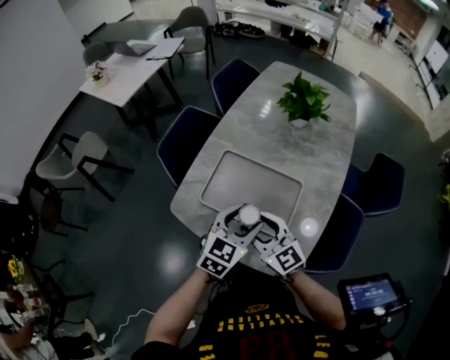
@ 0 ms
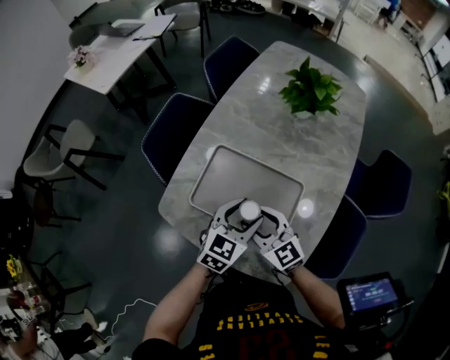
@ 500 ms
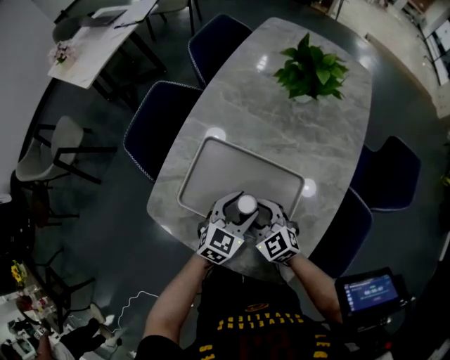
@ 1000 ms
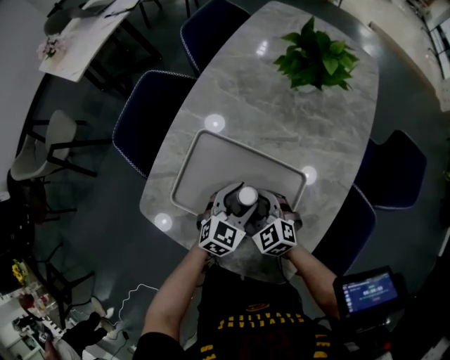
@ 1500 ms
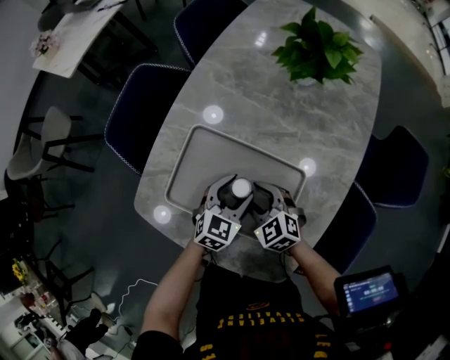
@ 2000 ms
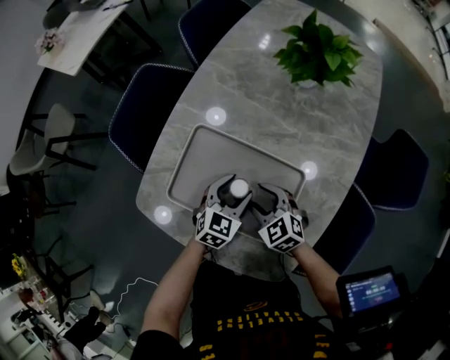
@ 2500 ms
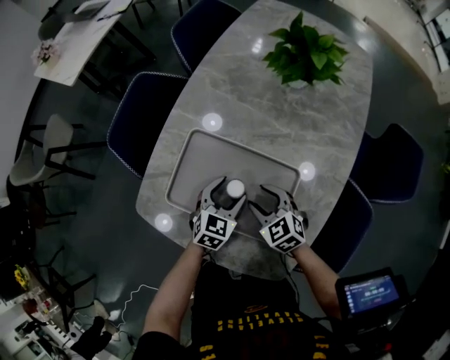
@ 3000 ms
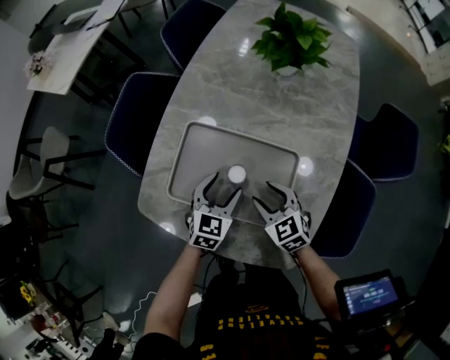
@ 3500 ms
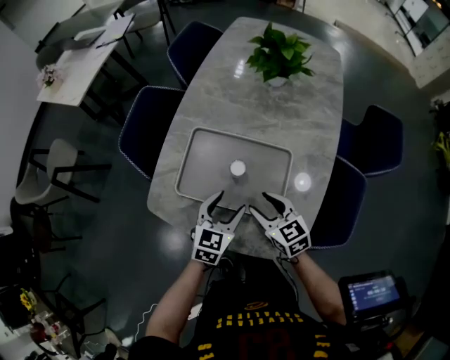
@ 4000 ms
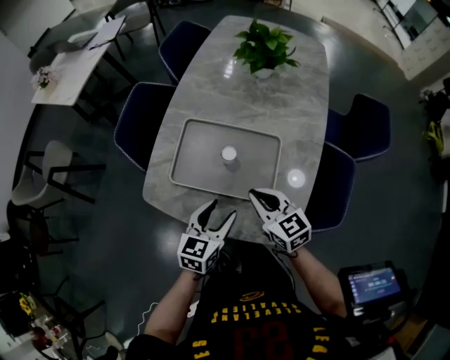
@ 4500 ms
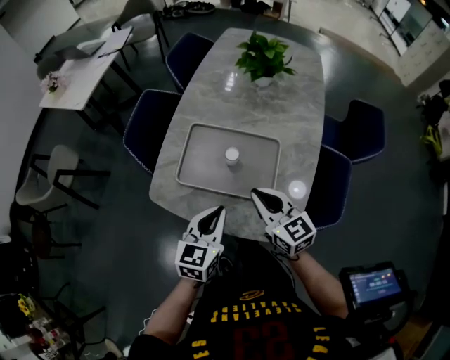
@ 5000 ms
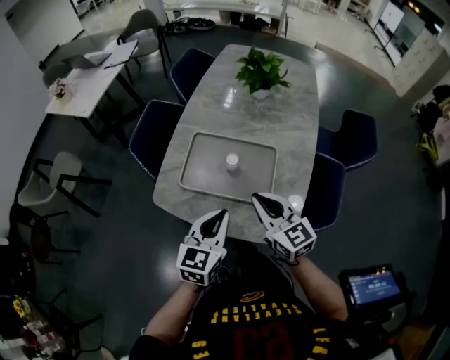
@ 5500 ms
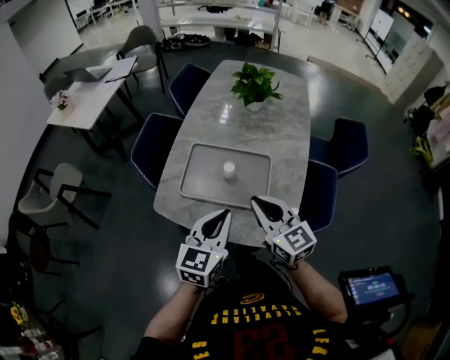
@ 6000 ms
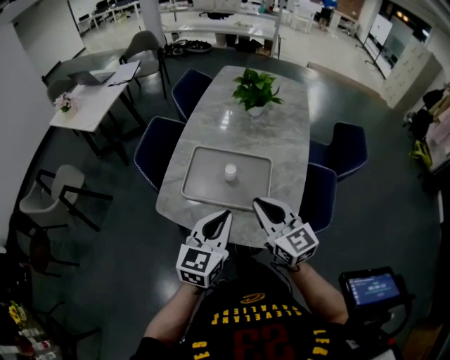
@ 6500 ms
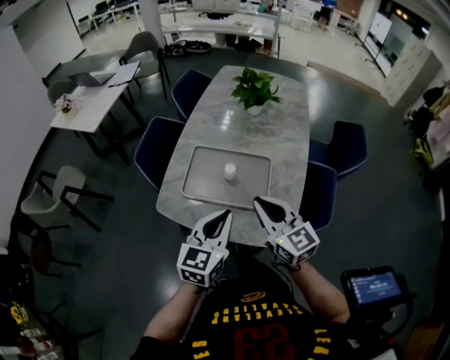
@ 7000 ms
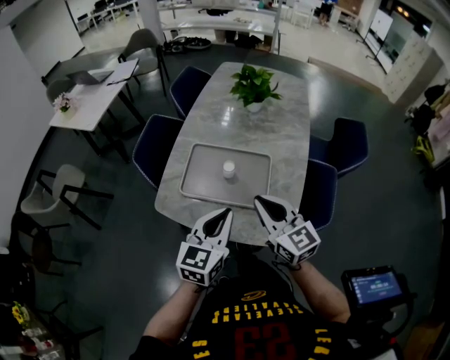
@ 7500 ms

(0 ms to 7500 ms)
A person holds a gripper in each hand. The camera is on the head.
0 ms - 2000 ms: The two grippers go some 25 cm downward and forward. The right gripper angles its fingers downward, by approximately 30 degrees.
2000 ms - 4000 ms: Both grippers travel together backward and upward, about 10 cm. The right gripper rotates about 30 degrees.
4000 ms - 5500 ms: Both grippers travel together upward and backward, roughly 20 cm. The left gripper closes up. Meanwhile the right gripper closes up.
5500 ms - 7500 ms: Both grippers move upward, about 5 cm.

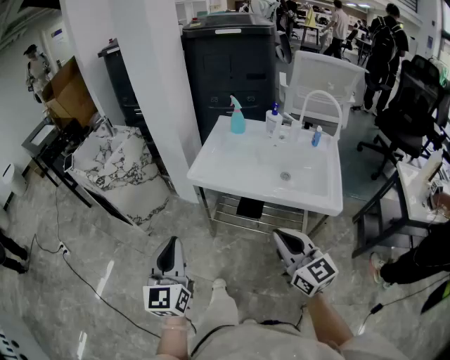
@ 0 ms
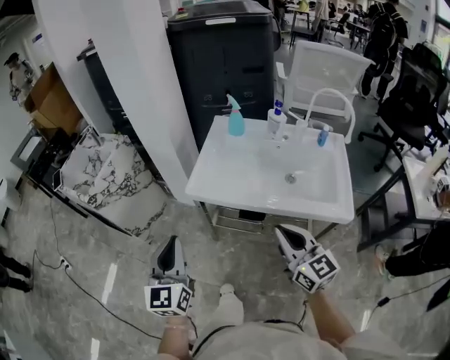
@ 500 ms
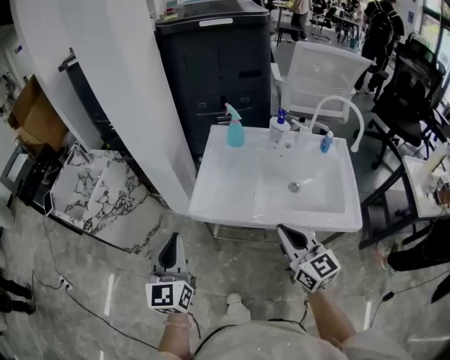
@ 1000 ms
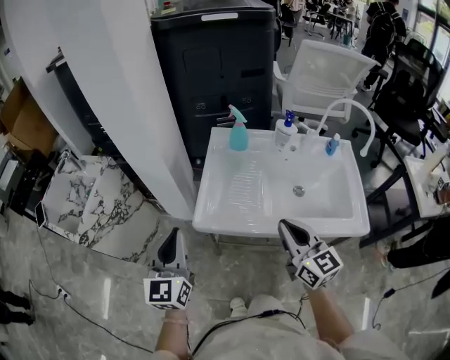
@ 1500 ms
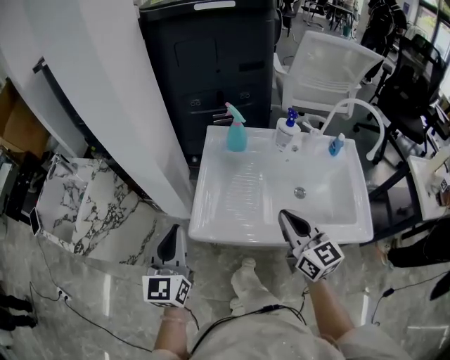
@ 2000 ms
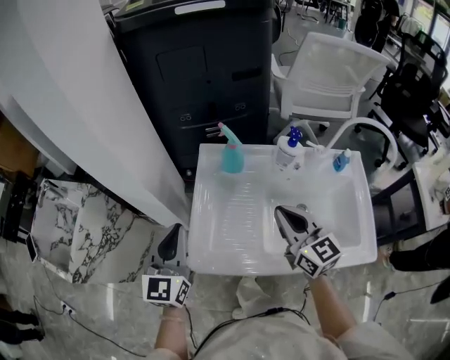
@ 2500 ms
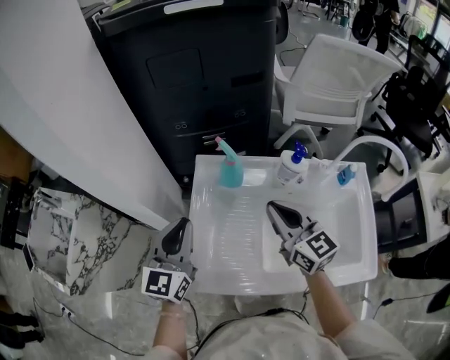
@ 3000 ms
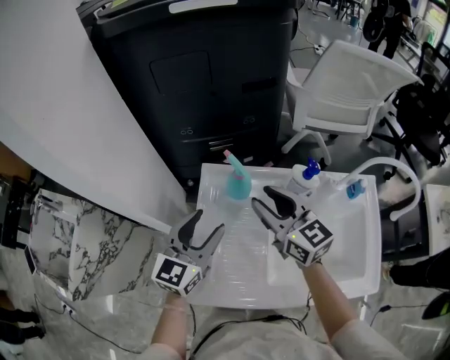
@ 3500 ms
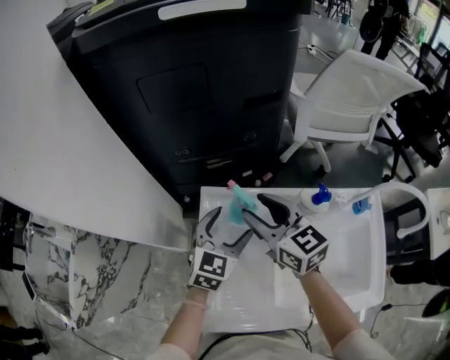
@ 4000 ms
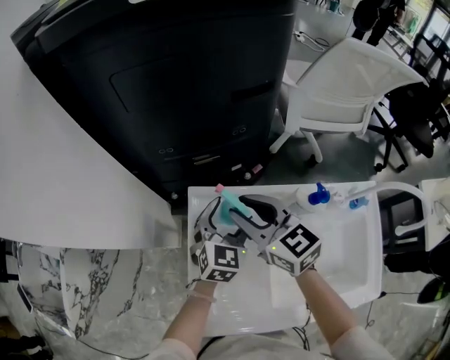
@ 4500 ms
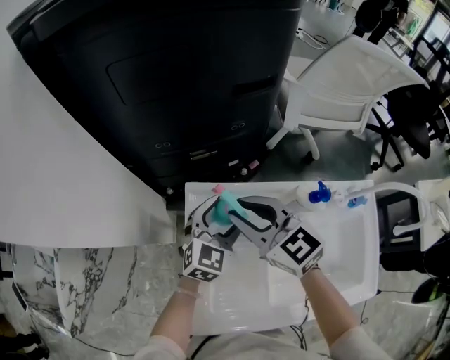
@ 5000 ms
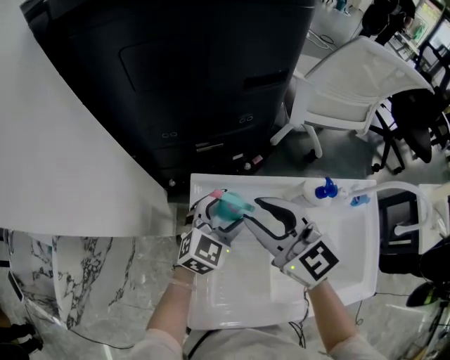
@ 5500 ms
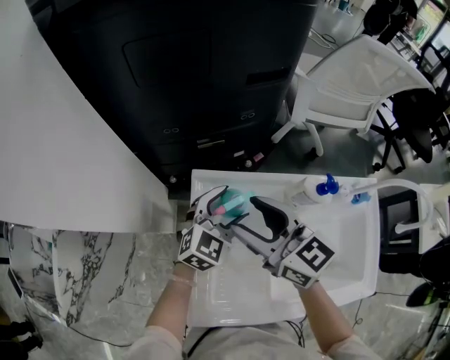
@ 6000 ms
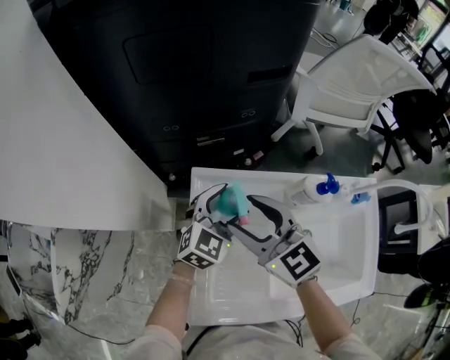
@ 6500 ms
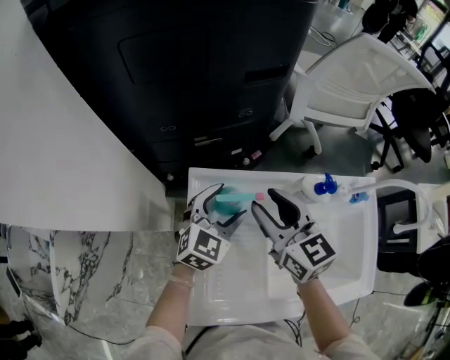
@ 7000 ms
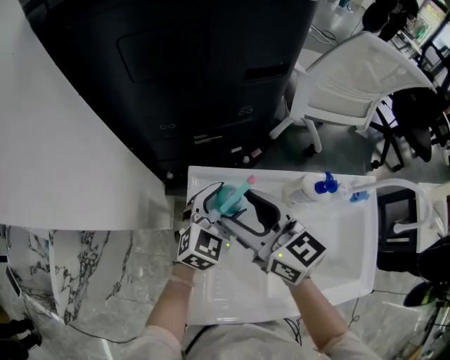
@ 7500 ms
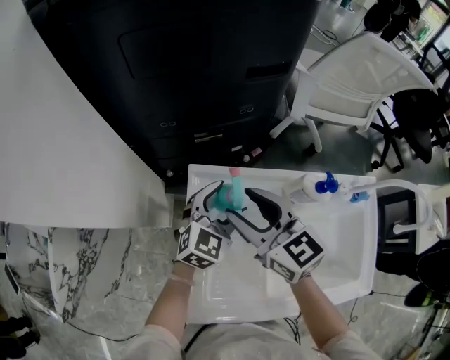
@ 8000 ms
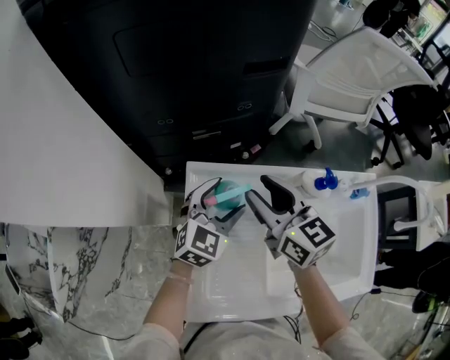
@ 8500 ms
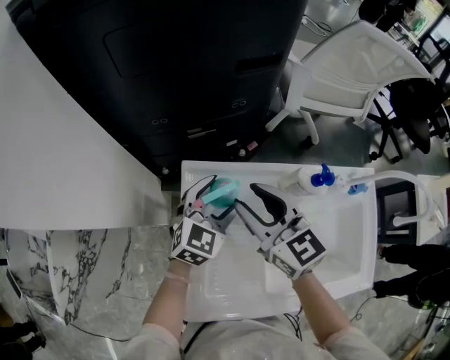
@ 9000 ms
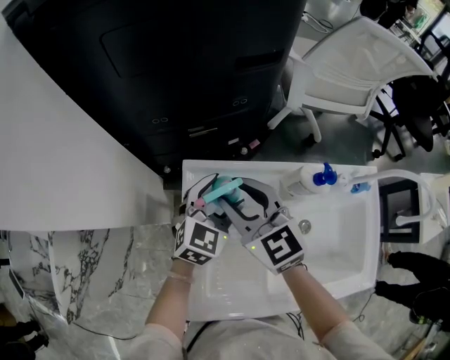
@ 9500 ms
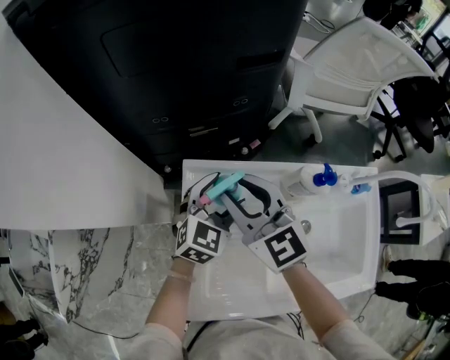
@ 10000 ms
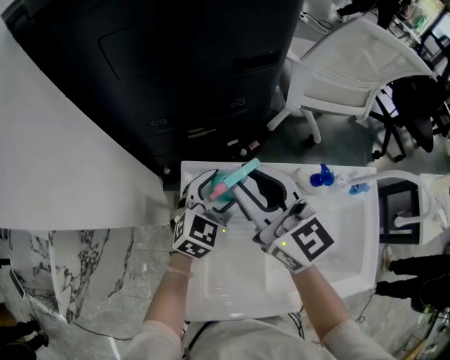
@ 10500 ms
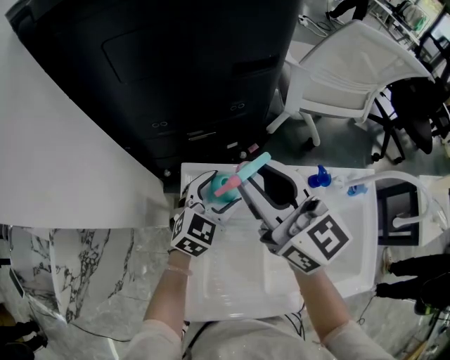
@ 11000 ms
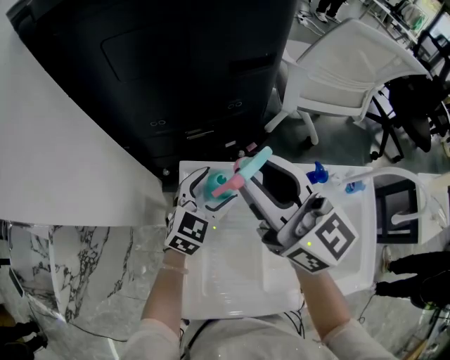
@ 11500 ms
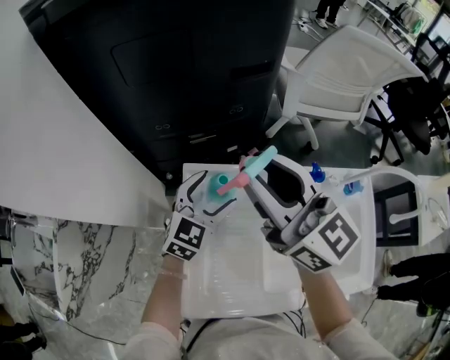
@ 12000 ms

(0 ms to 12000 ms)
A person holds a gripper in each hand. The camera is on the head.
0 ms - 2000 ms: Both grippers move forward, some 35 cm.
2000 ms - 4000 ms: The right gripper moves forward, about 35 cm, and opens. Meanwhile the left gripper goes about 40 cm forward and to the right, swivels roughly 30 degrees, and opens its fingers.
8000 ms - 10000 ms: The grippers move only a little.
10000 ms - 12000 ms: The right gripper heads upward, covering about 15 cm, and rotates about 20 degrees.

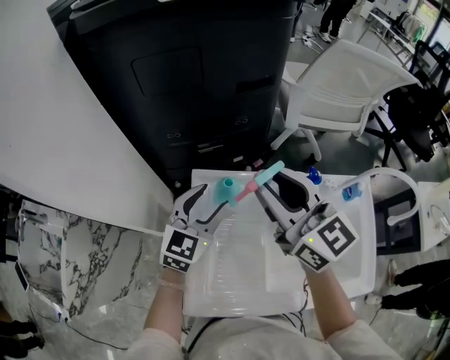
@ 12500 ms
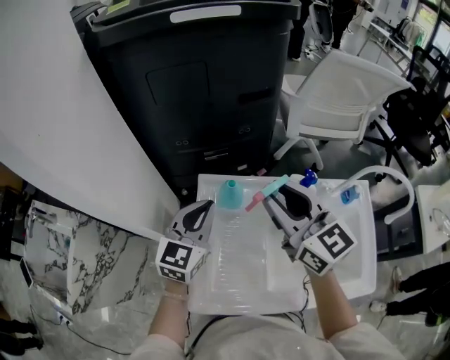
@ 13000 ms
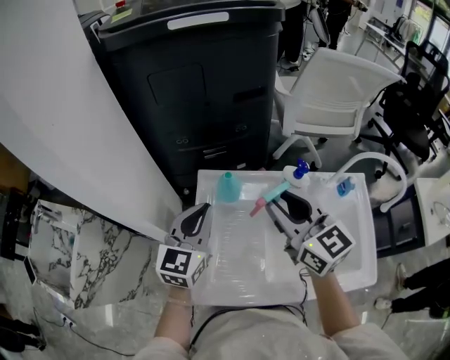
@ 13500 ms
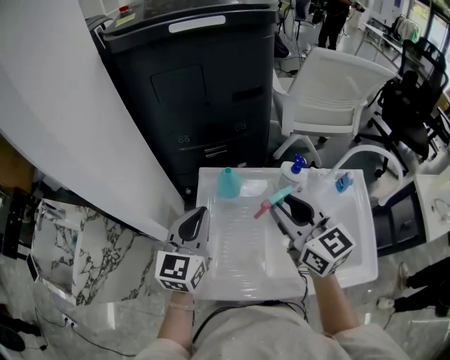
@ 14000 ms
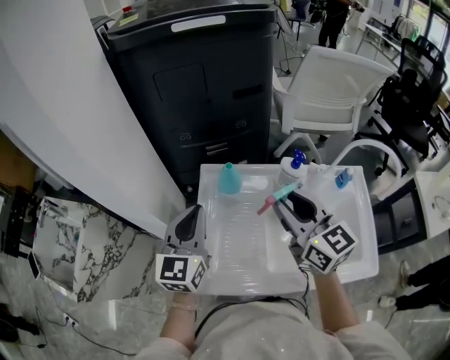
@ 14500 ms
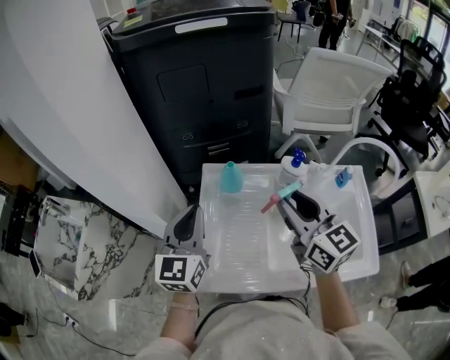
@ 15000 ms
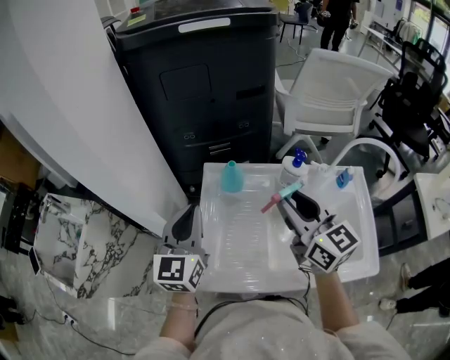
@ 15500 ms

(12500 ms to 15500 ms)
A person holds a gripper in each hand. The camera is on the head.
12500 ms - 14000 ms: The right gripper shifts some 10 cm backward. The left gripper travels backward and upward by about 15 cm, and closes.
14000 ms - 15500 ms: The grippers move only a little.

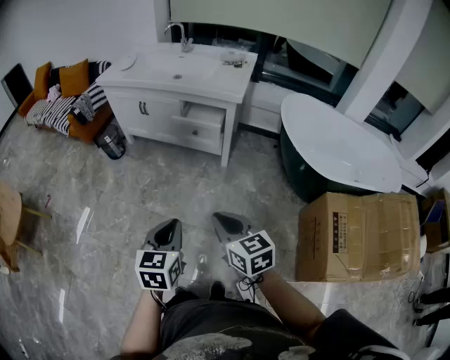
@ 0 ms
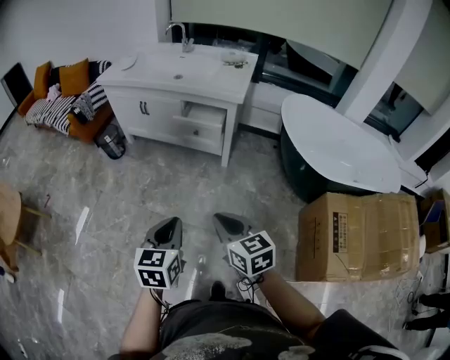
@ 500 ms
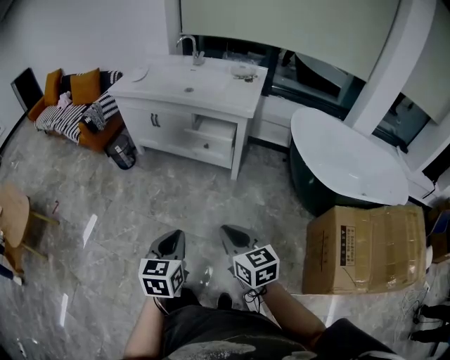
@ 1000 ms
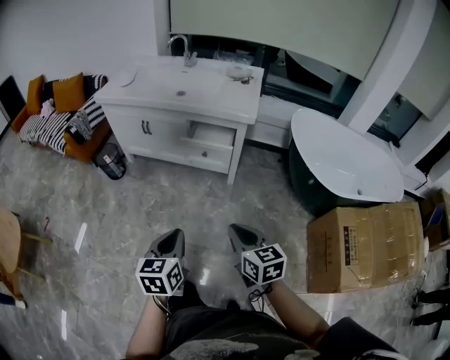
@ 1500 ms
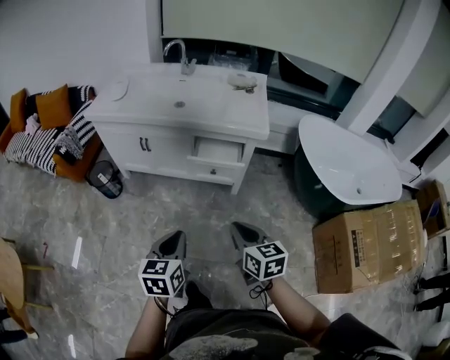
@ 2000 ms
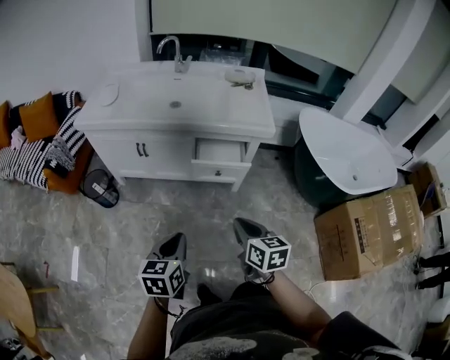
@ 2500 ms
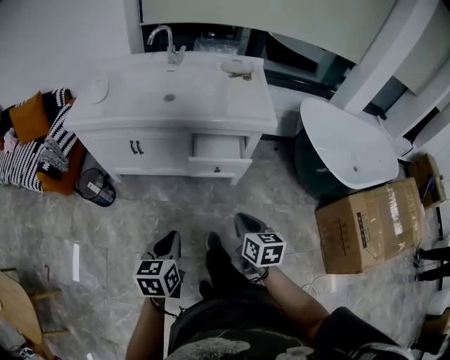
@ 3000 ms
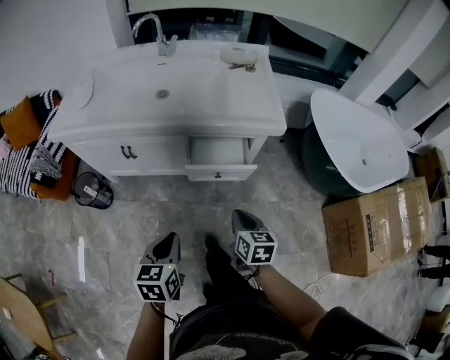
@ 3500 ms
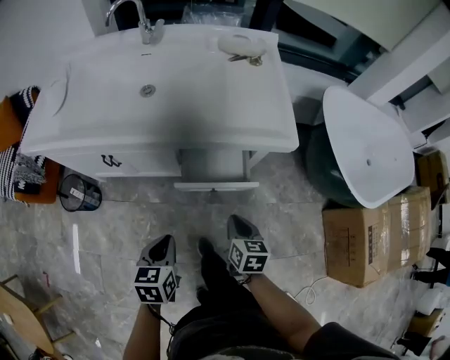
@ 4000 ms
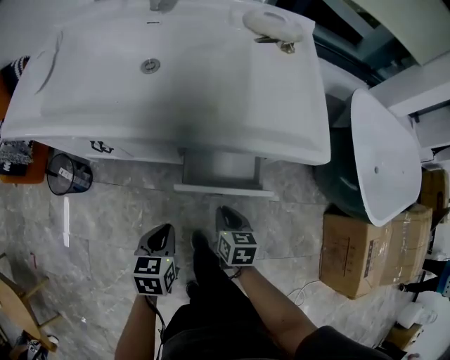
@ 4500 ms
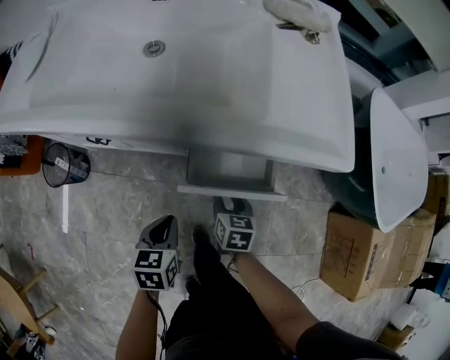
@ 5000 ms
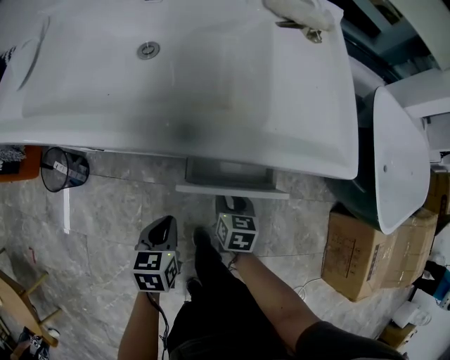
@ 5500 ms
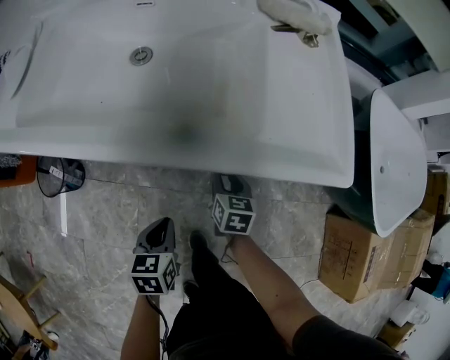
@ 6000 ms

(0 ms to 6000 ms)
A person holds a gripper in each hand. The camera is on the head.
0 ms - 2000 ms: The two grippers go approximately 25 cm forward and to the left.
2000 ms - 4000 ms: The grippers both shift forward and downward by some 35 cm. The right gripper turns by roughly 30 degrees.
4000 ms - 6000 ms: The right gripper shifts roughly 25 cm forward and downward, and opens. Meanwhile the left gripper shifts some 20 cm downward and forward.
